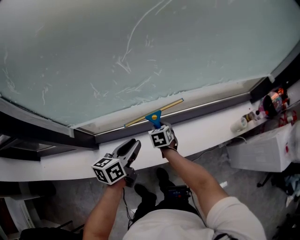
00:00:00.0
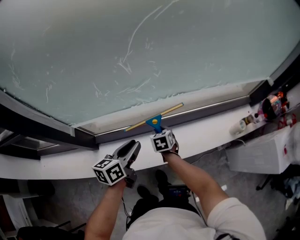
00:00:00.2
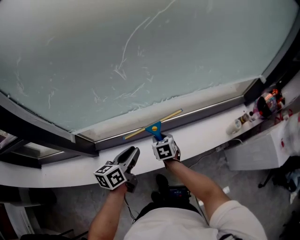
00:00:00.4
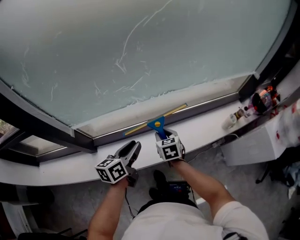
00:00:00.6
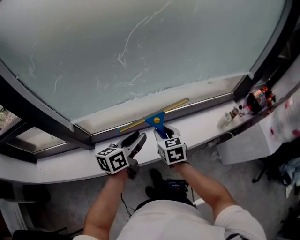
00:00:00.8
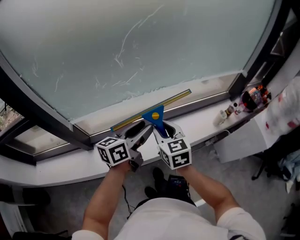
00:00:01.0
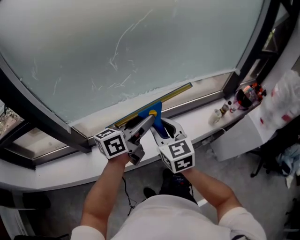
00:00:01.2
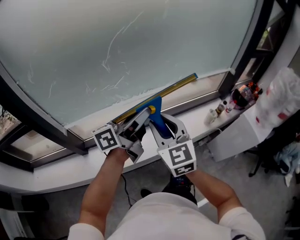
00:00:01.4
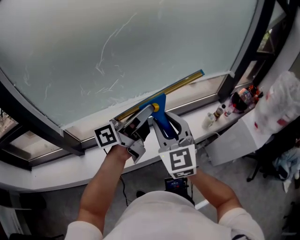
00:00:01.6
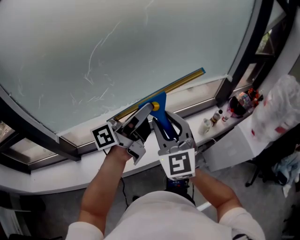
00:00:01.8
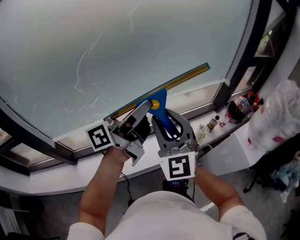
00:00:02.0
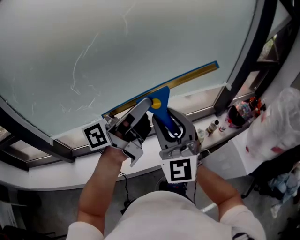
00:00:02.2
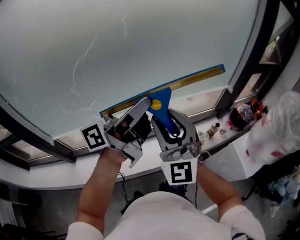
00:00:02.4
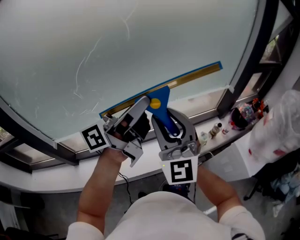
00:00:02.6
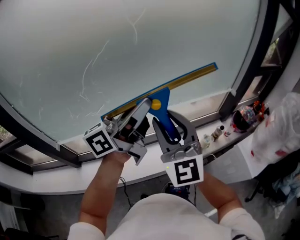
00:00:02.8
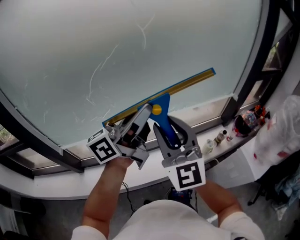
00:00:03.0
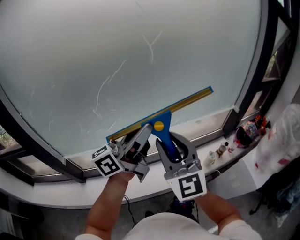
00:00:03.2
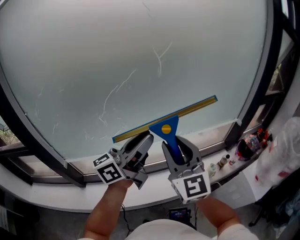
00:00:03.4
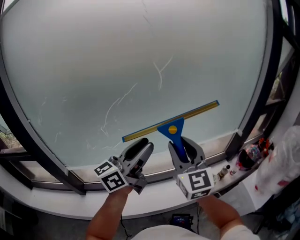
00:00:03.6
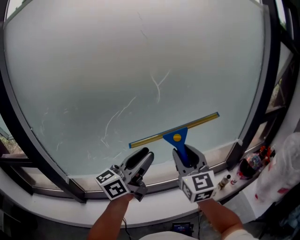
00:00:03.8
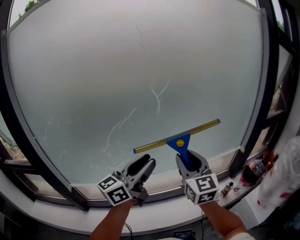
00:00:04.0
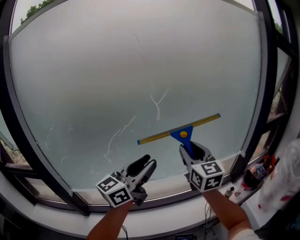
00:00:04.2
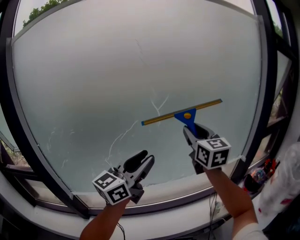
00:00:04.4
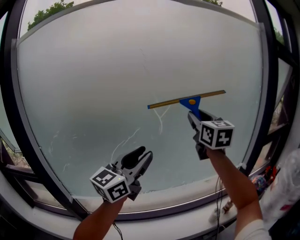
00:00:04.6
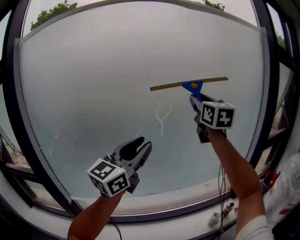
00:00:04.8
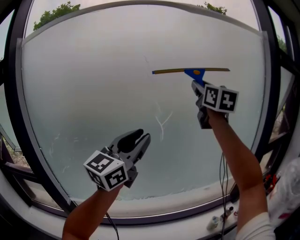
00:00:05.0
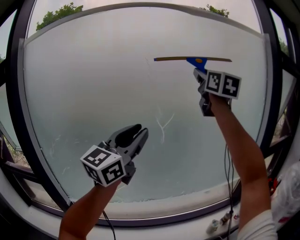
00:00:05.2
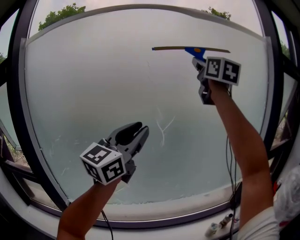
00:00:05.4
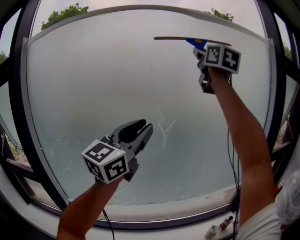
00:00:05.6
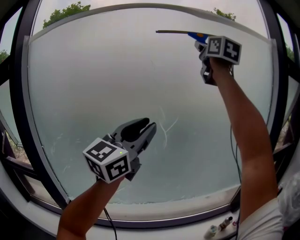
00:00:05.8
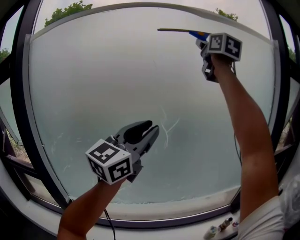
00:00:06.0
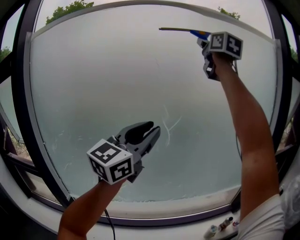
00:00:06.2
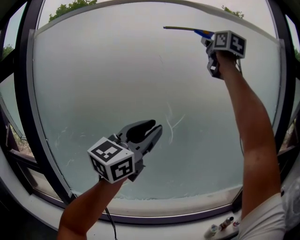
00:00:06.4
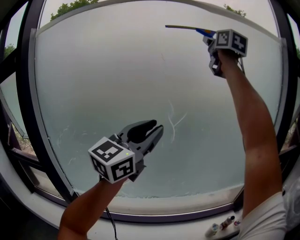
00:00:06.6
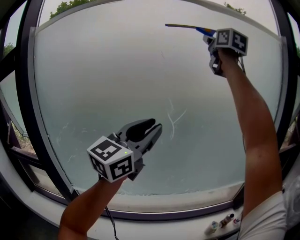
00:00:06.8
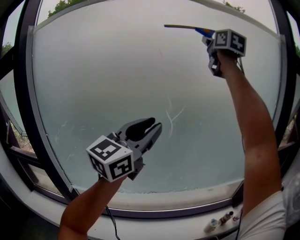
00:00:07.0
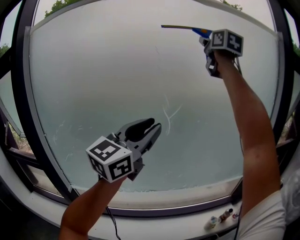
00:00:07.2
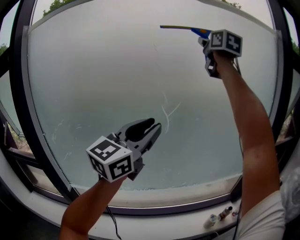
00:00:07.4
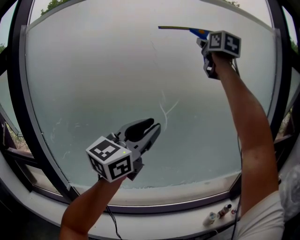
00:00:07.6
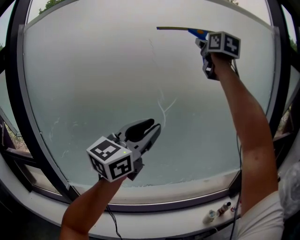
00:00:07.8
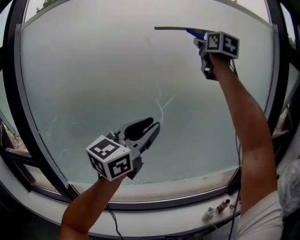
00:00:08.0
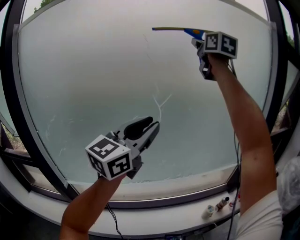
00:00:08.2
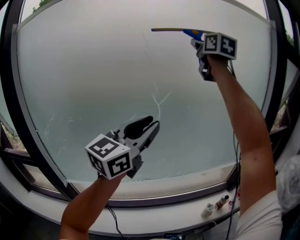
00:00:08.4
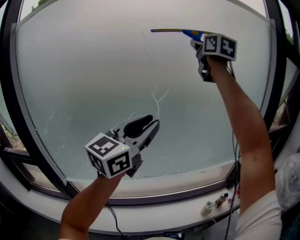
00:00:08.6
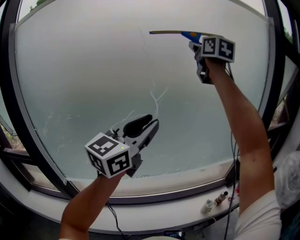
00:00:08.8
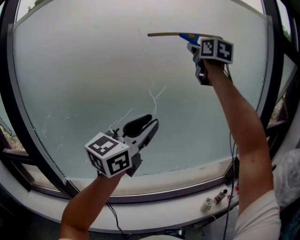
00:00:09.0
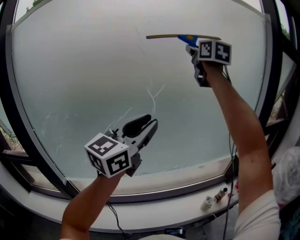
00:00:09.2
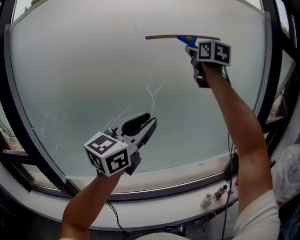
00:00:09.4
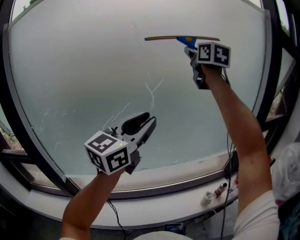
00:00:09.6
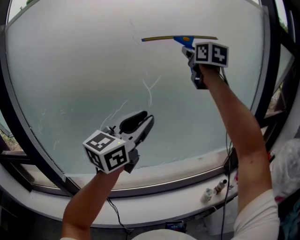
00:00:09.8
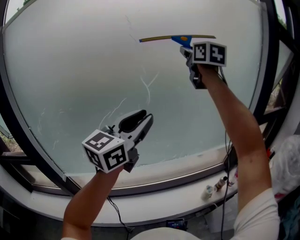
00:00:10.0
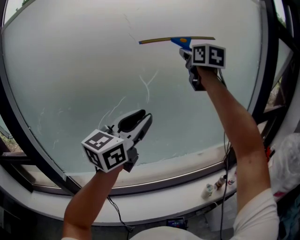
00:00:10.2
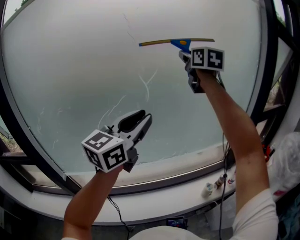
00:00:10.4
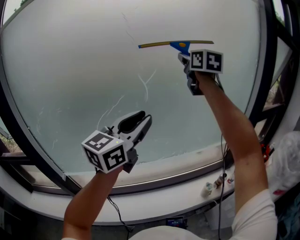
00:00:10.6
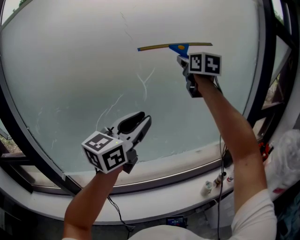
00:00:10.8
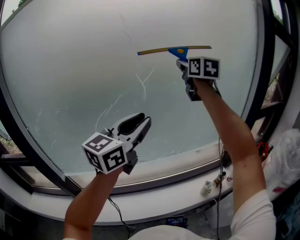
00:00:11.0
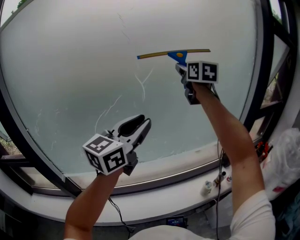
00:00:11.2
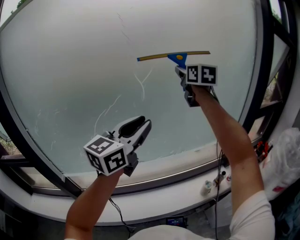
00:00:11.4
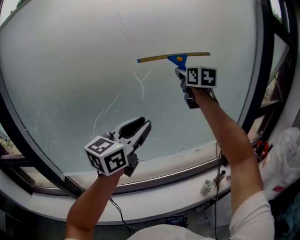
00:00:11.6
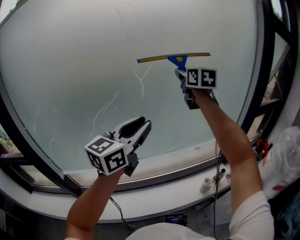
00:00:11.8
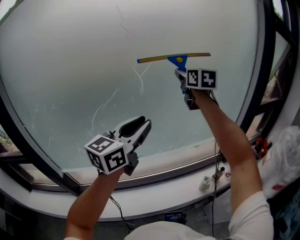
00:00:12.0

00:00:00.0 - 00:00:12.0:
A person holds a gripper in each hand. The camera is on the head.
00:00:00.0 - 00:00:01.6: The left gripper moves upward and to the right, some 35 cm, and tilts its fingers about 40 degrees upward. Meanwhile the right gripper travels upward, to the right and backward by some 50 cm, and points its fingers some 50 degrees further upward.
00:00:01.6 - 00:00:03.0: Both grippers travel together upward, forward and to the right, about 15 cm. The left gripper rotates approximately 20 degrees.
00:00:03.0 - 00:00:04.4: The right gripper moves forward and upward, some 25 cm. Meanwhile the left gripper shifts about 5 cm upward, and changes its angle by about 40 degrees.
00:00:04.4 - 00:00:06.0: The left gripper moves upward, roughly 15 cm, and changes its angle by about 20 degrees; the right gripper moves upward, roughly 40 cm.
00:00:06.0 - 00:00:07.6: The left gripper ends up about 5 cm from where it was. Meanwhile the right gripper is displaced downward by roughly 5 cm.
00:00:07.6 - 00:00:09.0: The right gripper goes approximately 10 cm downward.
00:00:09.0 - 00:00:10.4: The right gripper goes some 10 cm downward.
00:00:10.4 - 00:00:12.0: The right gripper shifts approximately 10 cm downward. The left gripper travels downward by roughly 5 cm.

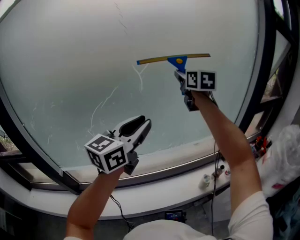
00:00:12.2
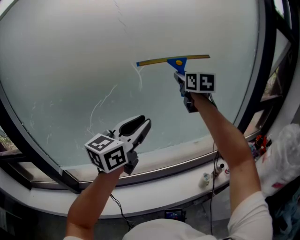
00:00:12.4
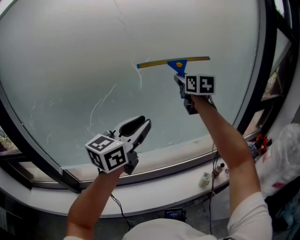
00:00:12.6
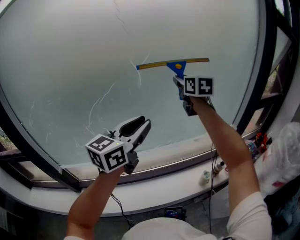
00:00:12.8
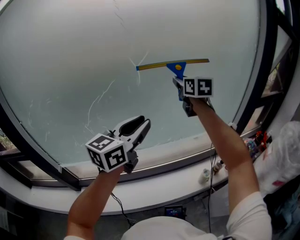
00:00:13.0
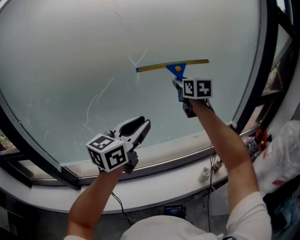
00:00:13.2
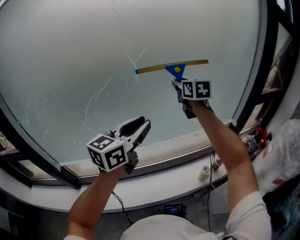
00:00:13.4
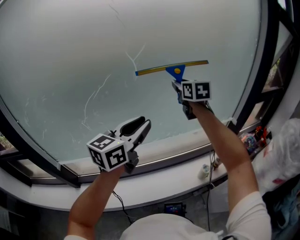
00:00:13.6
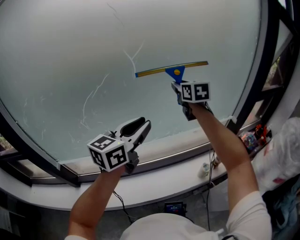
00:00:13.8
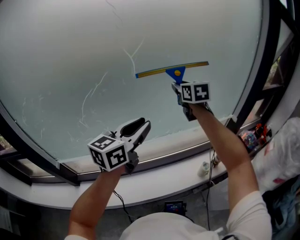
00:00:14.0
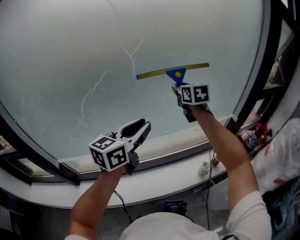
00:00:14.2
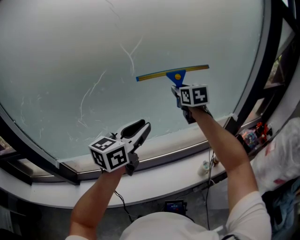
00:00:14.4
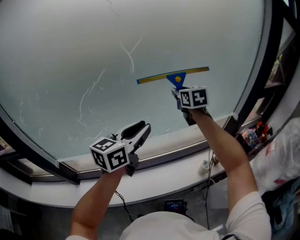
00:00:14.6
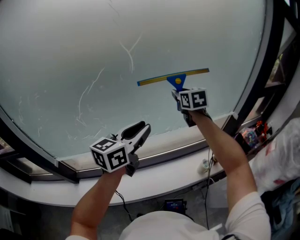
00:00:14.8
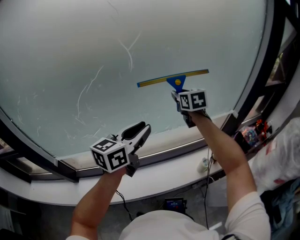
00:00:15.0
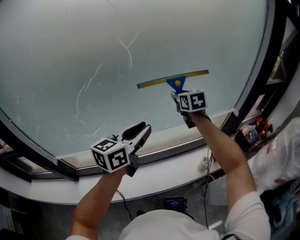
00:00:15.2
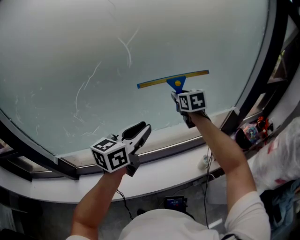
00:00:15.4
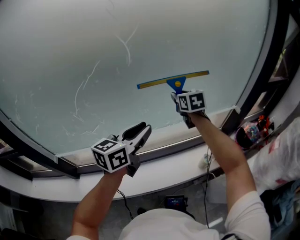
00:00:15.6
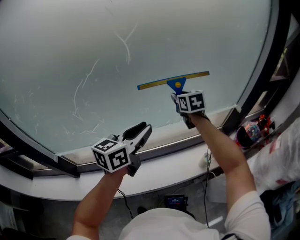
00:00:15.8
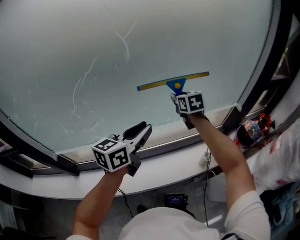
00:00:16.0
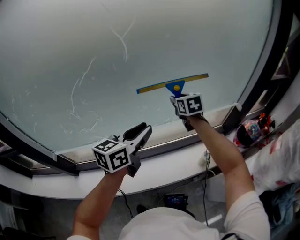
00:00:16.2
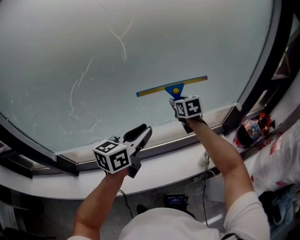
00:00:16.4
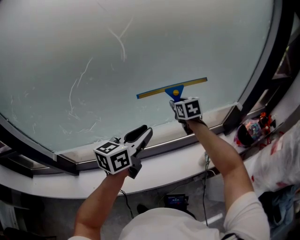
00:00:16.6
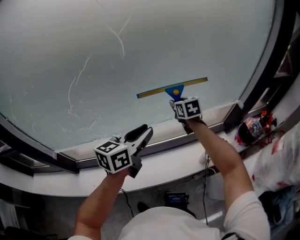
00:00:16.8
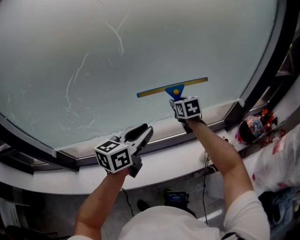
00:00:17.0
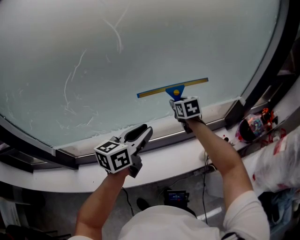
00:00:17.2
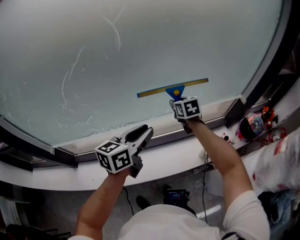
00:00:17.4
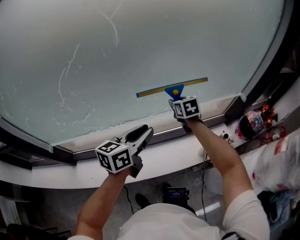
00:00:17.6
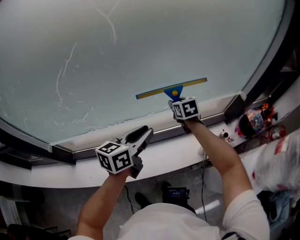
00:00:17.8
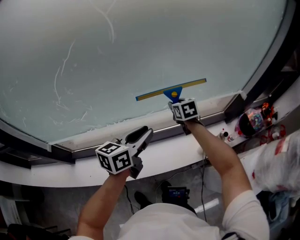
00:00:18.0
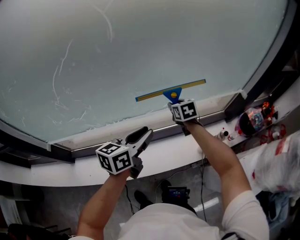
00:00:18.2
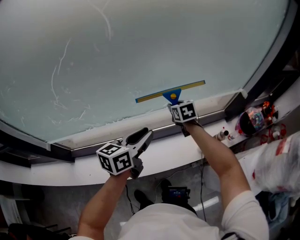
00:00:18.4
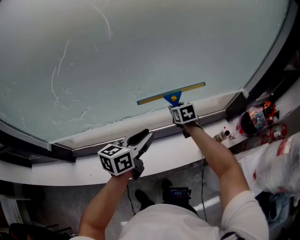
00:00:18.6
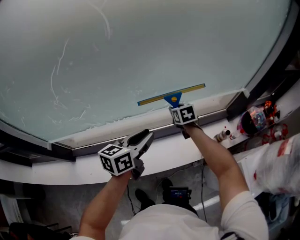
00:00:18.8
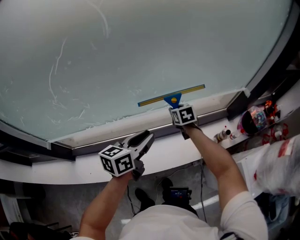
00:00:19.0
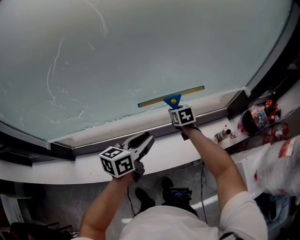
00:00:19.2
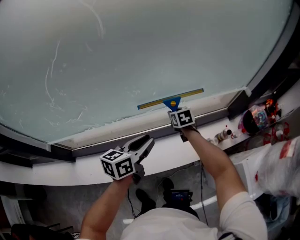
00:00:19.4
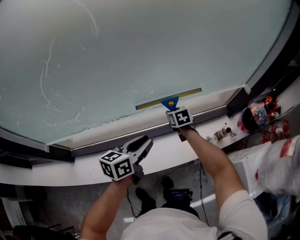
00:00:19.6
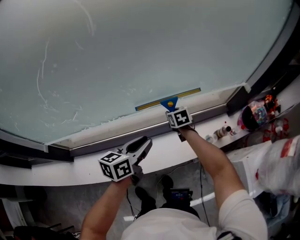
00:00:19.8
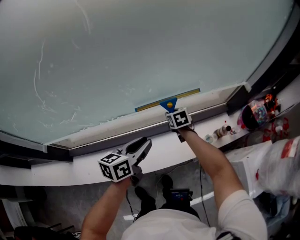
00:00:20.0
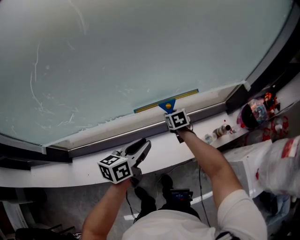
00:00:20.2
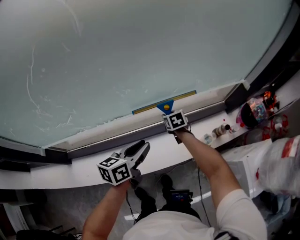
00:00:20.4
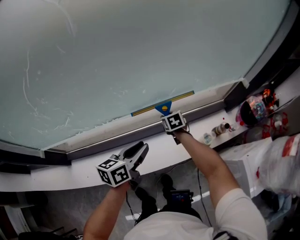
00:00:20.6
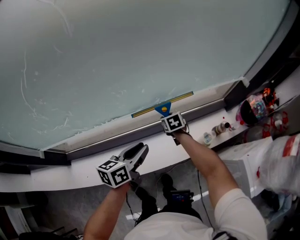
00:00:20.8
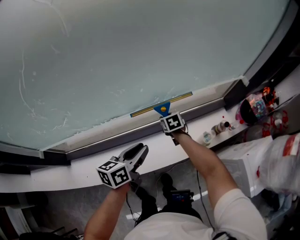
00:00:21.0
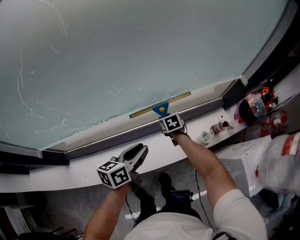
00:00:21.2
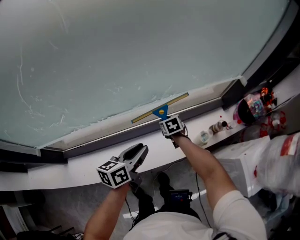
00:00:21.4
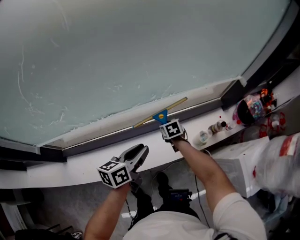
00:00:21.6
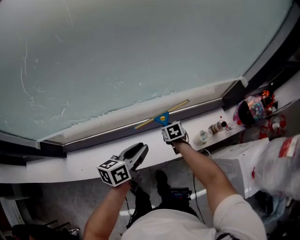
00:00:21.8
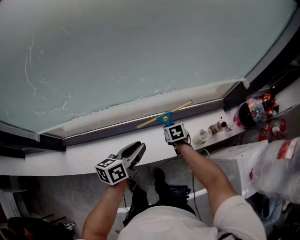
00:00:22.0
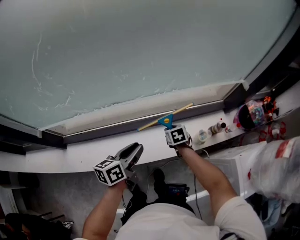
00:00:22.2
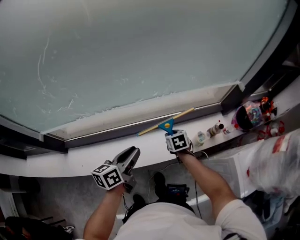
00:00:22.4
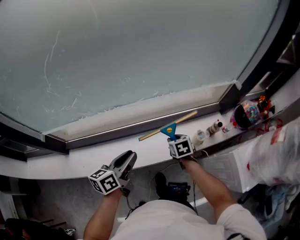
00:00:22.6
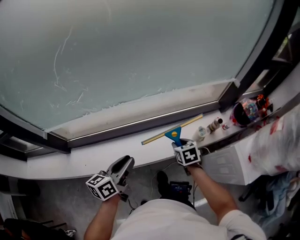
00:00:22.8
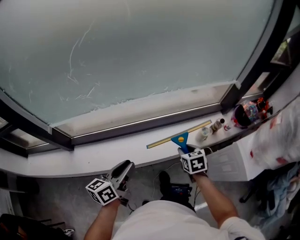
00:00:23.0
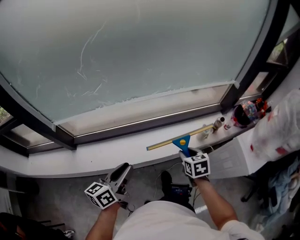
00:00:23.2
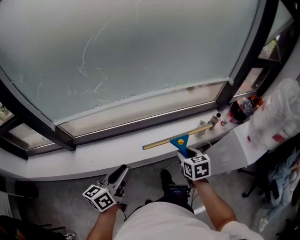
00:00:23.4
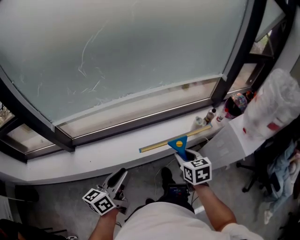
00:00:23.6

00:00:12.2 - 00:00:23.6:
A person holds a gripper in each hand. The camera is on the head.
00:00:12.2 - 00:00:13.6: The right gripper is displaced downward by roughly 10 cm, while the left gripper heads downward, covering some 5 cm.
00:00:13.6 - 00:00:15.0: The left gripper travels downward by approximately 5 cm. Meanwhile the right gripper is displaced downward by approximately 10 cm.
00:00:15.0 - 00:00:16.4: The right gripper goes some 10 cm downward. Meanwhile the left gripper is displaced downward by some 5 cm.
00:00:16.4 - 00:00:17.8: Both grippers travel together downward, roughly 10 cm.
00:00:17.8 - 00:00:19.4: The right gripper travels downward by roughly 10 cm. Meanwhile the left gripper is displaced downward by roughly 5 cm.
00:00:19.4 - 00:00:20.8: The right gripper moves downward, about 10 cm. The left gripper goes some 5 cm downward.
00:00:20.8 - 00:00:22.2: The right gripper shifts roughly 10 cm backward, while the left gripper heads backward, covering some 5 cm.
00:00:22.2 - 00:00:23.6: The left gripper is displaced backward and to the left by approximately 35 cm, while the right gripper shifts about 40 cm backward and upward, and swivels approximately 20 degrees.
